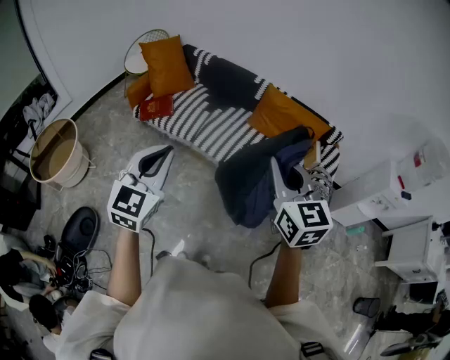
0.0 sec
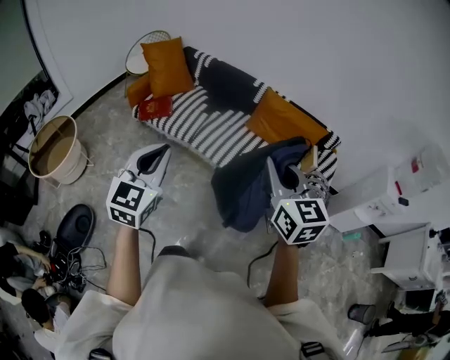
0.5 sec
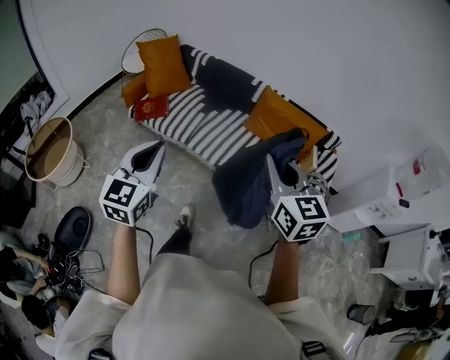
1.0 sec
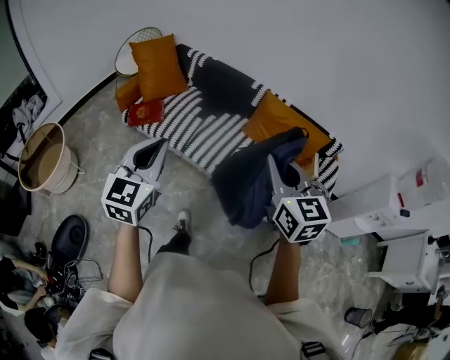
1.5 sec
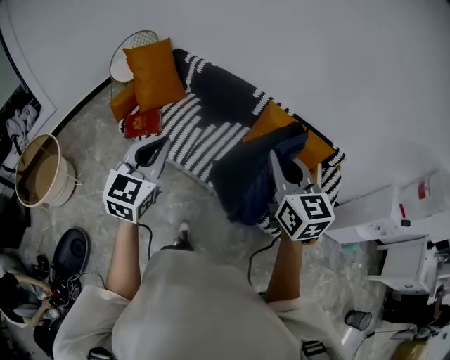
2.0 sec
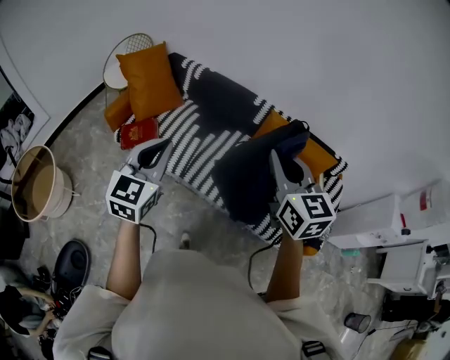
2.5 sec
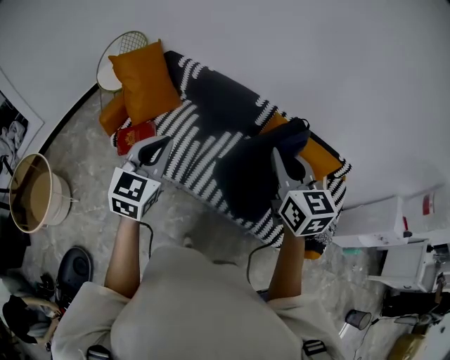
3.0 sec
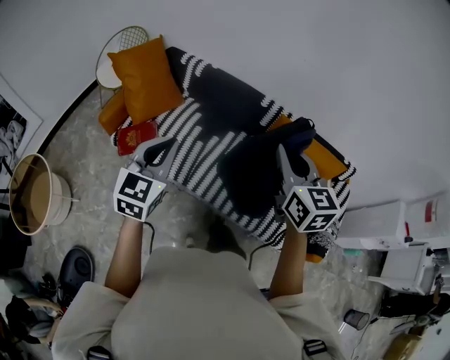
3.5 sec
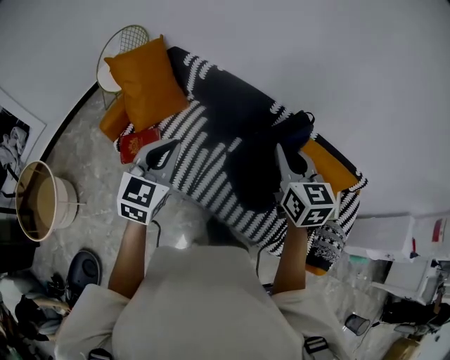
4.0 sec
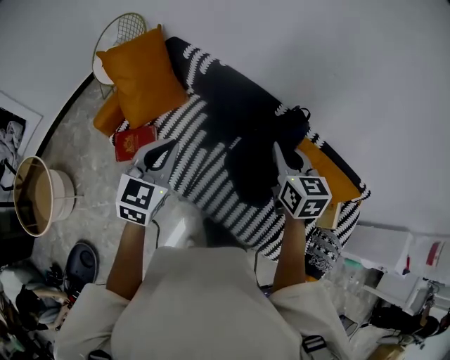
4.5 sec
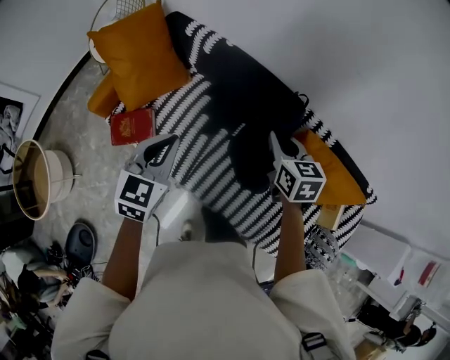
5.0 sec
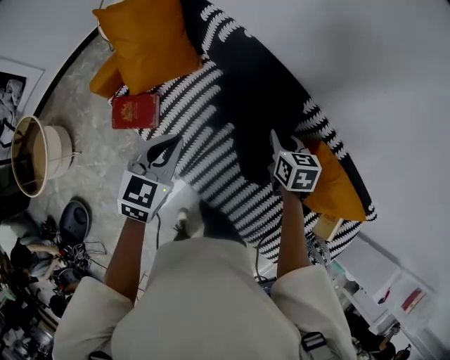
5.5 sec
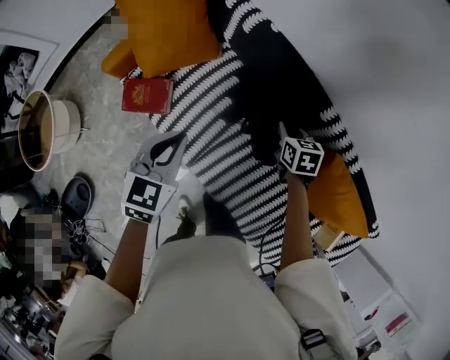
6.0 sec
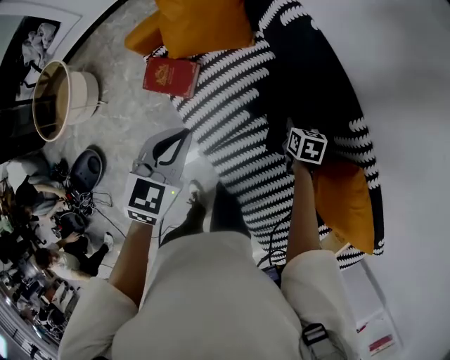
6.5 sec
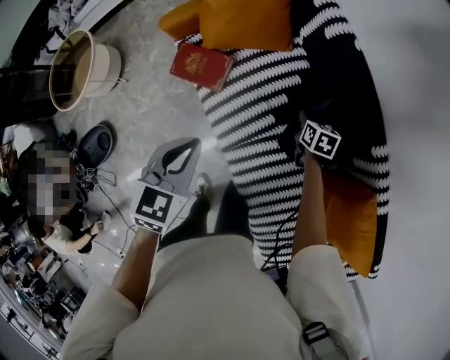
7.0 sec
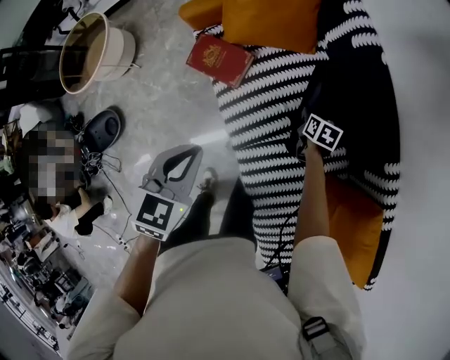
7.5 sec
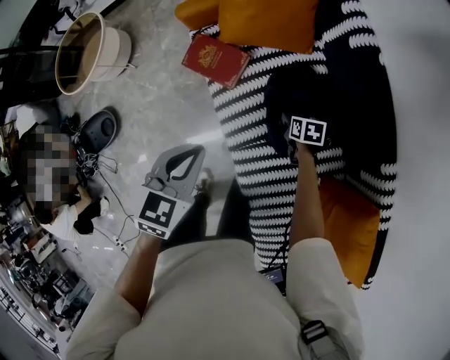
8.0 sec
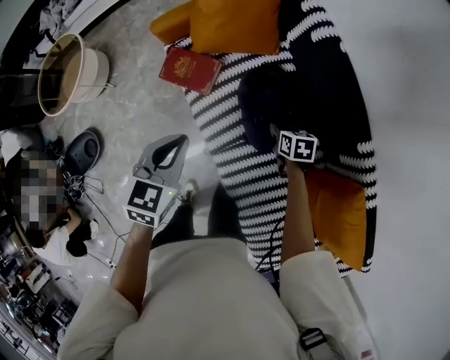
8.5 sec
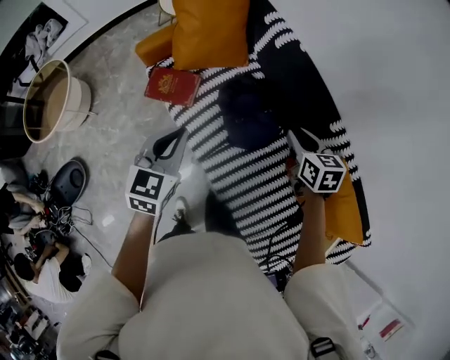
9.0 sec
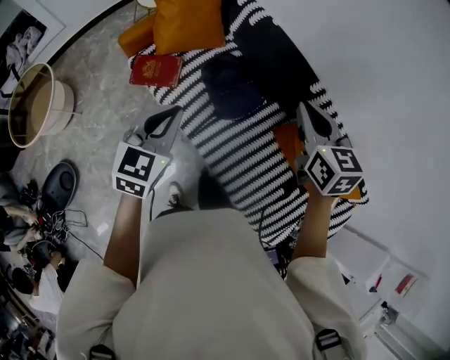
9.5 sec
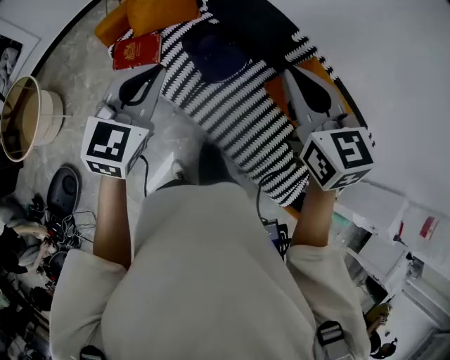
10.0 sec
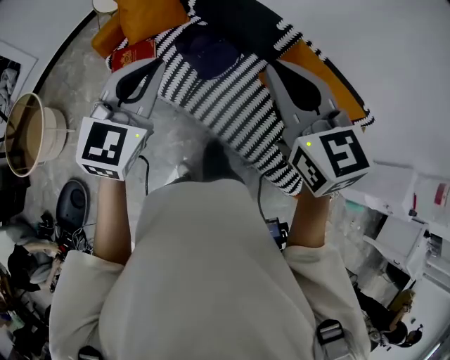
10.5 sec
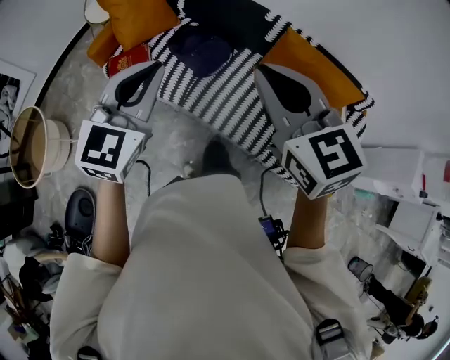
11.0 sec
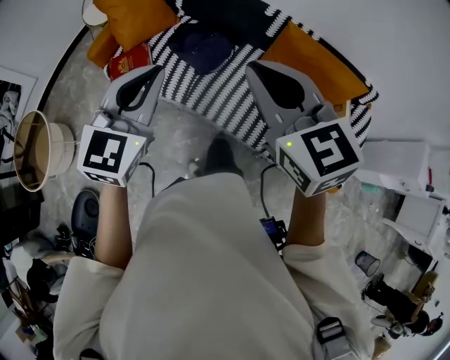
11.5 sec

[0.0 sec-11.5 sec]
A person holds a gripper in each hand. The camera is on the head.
0.0 sec to 2.0 sec: Both grippers travel together forward, some 25 cm.
2.0 sec to 4.0 sec: The grippers both shift forward by approximately 40 cm.
4.0 sec to 6.0 sec: The right gripper is displaced downward and forward by about 50 cm, and points its fingers about 30 degrees further downward; the left gripper moves forward and downward, some 30 cm, and turns by some 30 degrees.
6.0 sec to 7.5 sec: The right gripper travels downward, to the left and forward by approximately 25 cm; the left gripper moves to the left, some 15 cm, and rotates approximately 20 degrees.
7.5 sec to 9.5 sec: The left gripper shifts by roughly 20 cm, and turns by approximately 30 degrees, while the right gripper is displaced upward by roughly 50 cm, turns by some 40 degrees, and opens, then closes again.
9.5 sec to 11.5 sec: The left gripper travels backward, upward and to the right by some 25 cm, and changes its angle by approximately 30 degrees. Meanwhile the right gripper travels backward by roughly 30 cm.

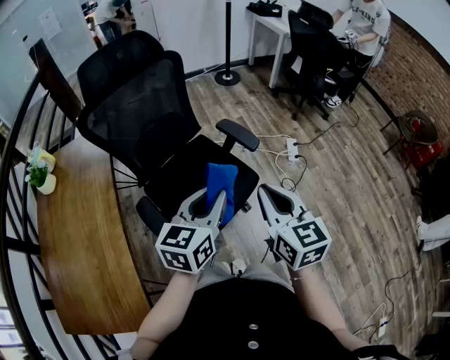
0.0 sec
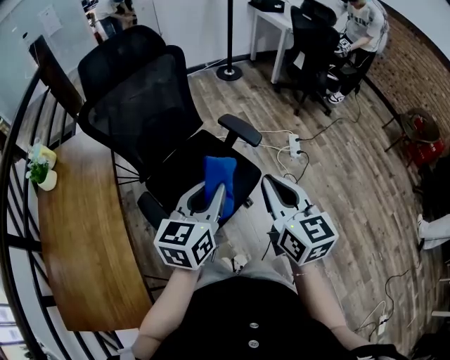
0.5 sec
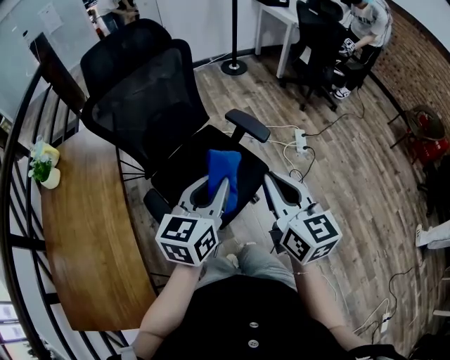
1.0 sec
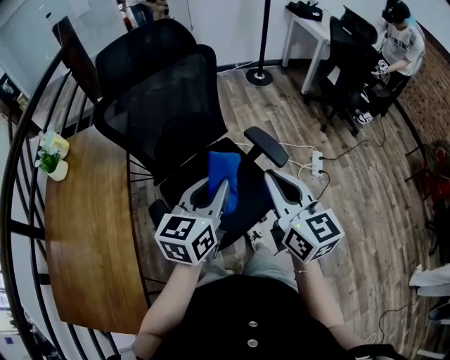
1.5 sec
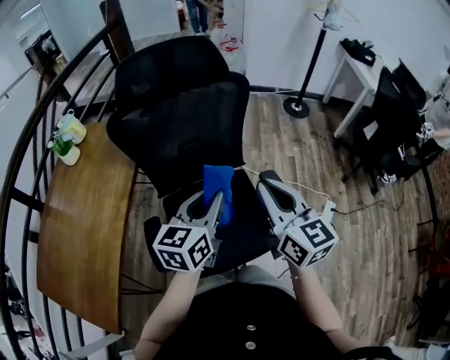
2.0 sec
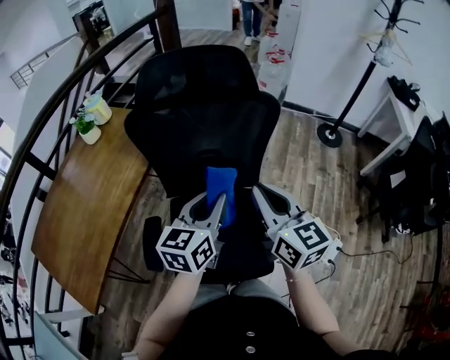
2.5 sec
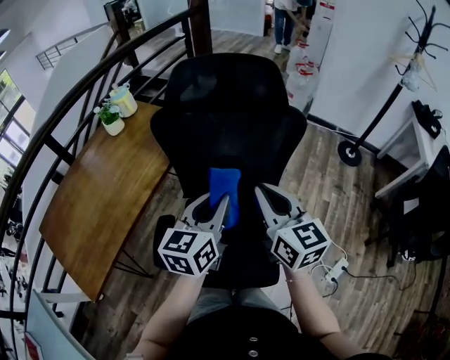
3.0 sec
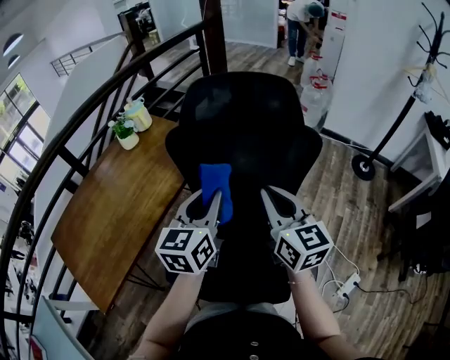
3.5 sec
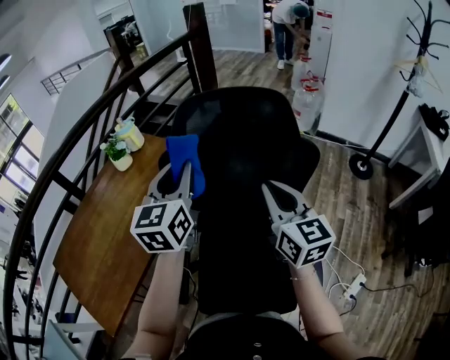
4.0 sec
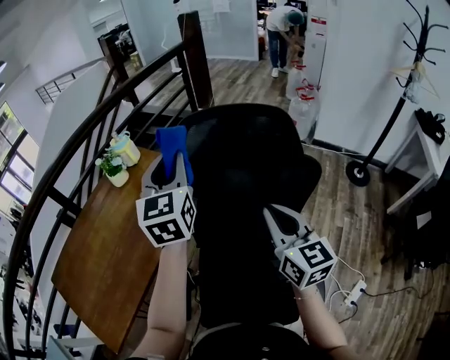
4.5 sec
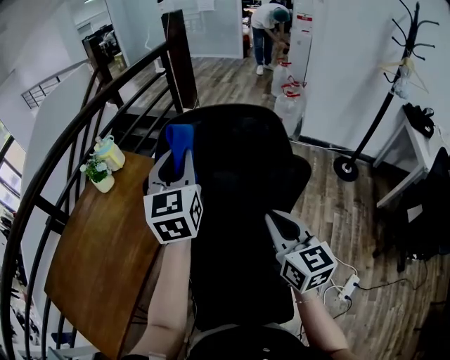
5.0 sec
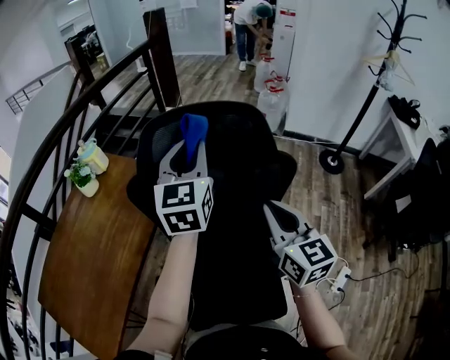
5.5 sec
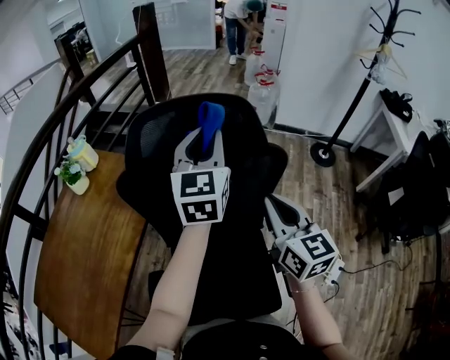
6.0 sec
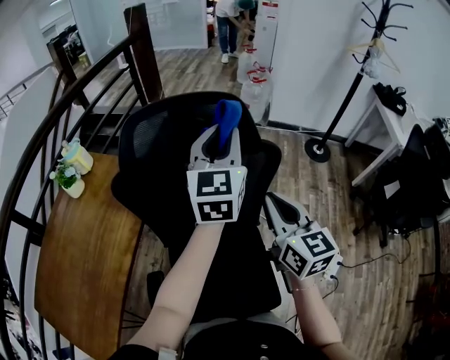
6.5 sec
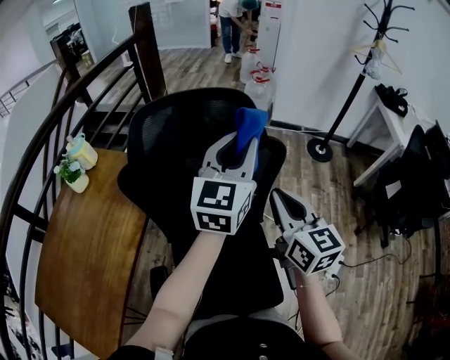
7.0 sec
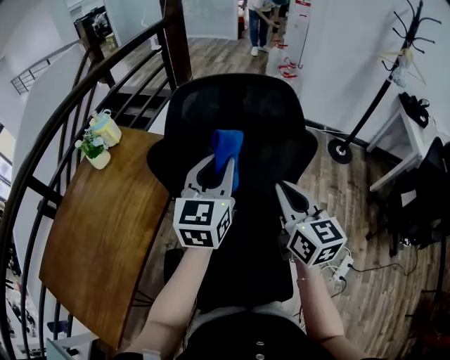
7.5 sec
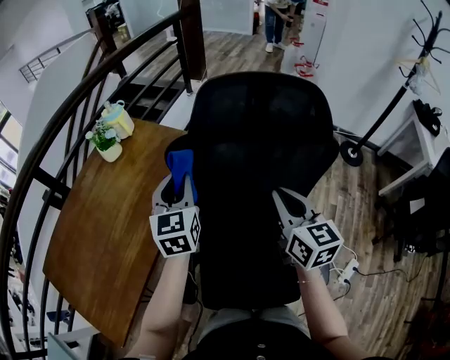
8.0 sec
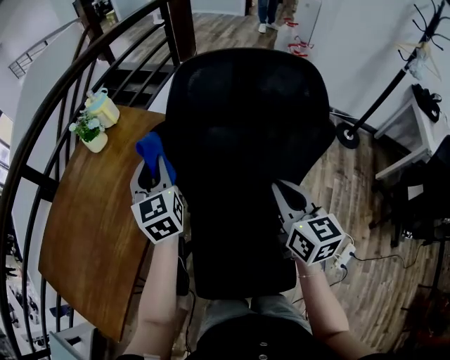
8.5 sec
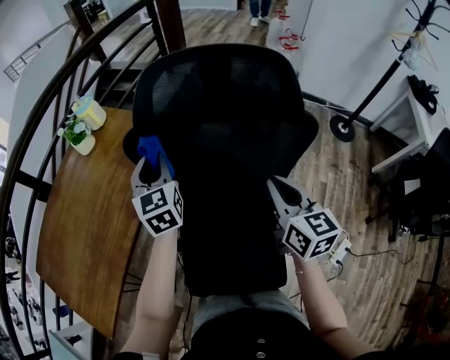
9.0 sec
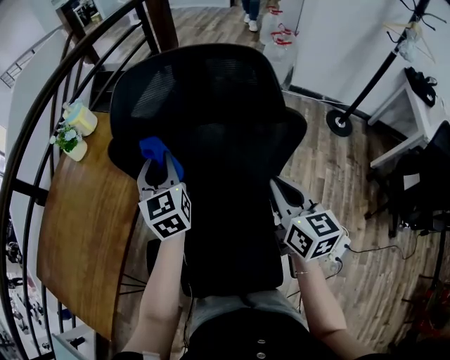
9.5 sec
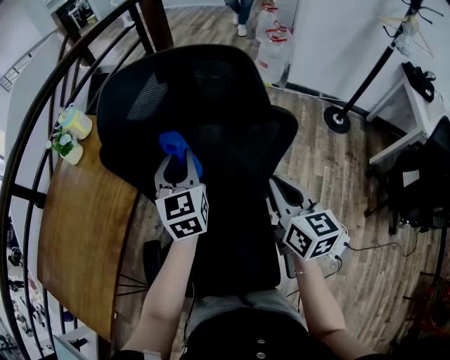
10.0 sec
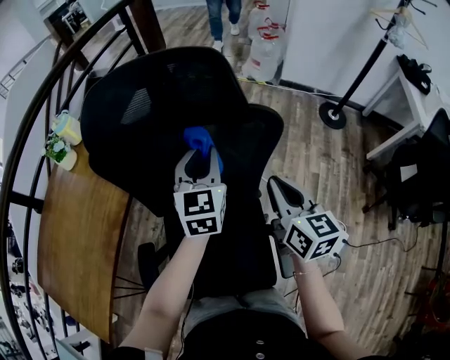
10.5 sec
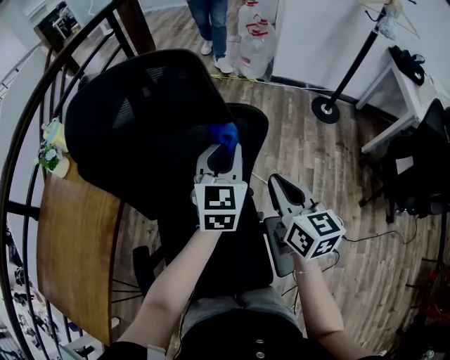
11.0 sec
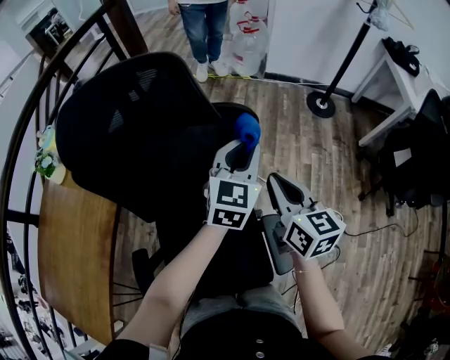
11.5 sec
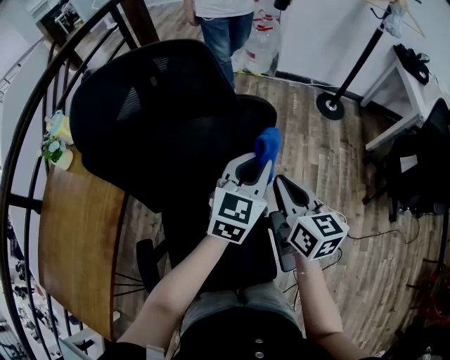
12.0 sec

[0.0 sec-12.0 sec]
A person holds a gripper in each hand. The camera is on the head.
0.0 sec to 2.0 sec: The left gripper moves roughly 25 cm, and turns by about 30 degrees; the right gripper moves approximately 25 cm, and rotates about 30 degrees.
2.0 sec to 4.0 sec: The left gripper ends up approximately 30 cm from where it was, and swivels about 40 degrees. Meanwhile the right gripper ends up approximately 25 cm from where it was.
4.0 sec to 6.0 sec: The left gripper heads to the right and forward, covering about 20 cm. Meanwhile the right gripper moves to the right, approximately 10 cm.
6.0 sec to 8.0 sec: The right gripper heads to the left, covering roughly 10 cm. Meanwhile the left gripper goes about 25 cm to the left and downward, and changes its angle by approximately 20 degrees.
8.0 sec to 10.0 sec: The two grippers go about 15 cm to the right.
10.0 sec to 12.0 sec: The right gripper shifts about 5 cm to the right; the left gripper travels to the right by roughly 25 cm, and rotates some 40 degrees.

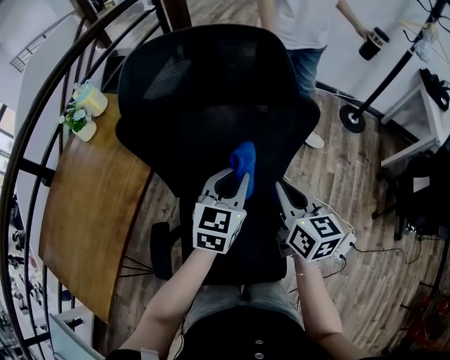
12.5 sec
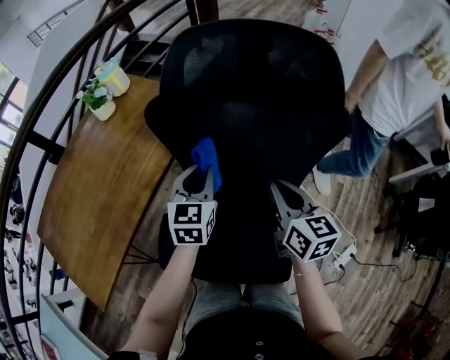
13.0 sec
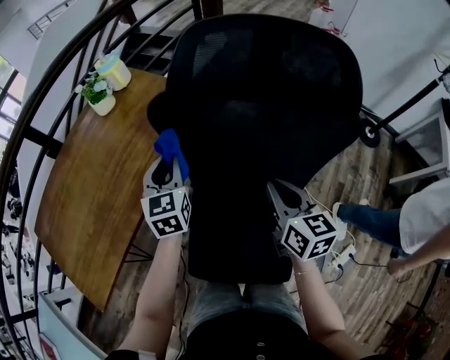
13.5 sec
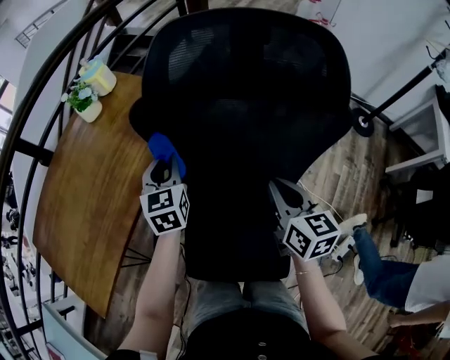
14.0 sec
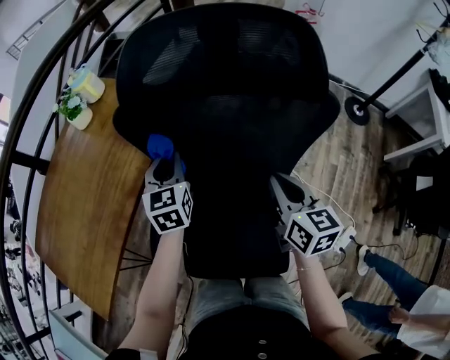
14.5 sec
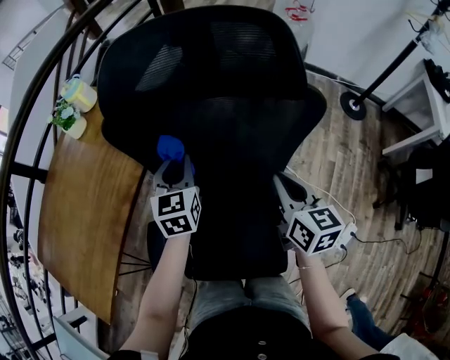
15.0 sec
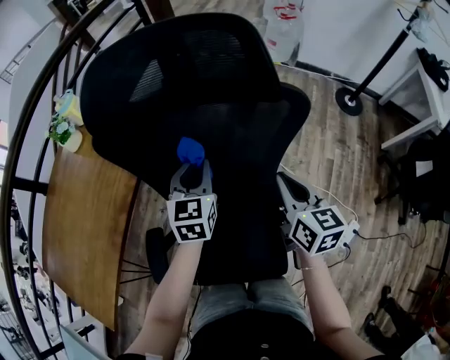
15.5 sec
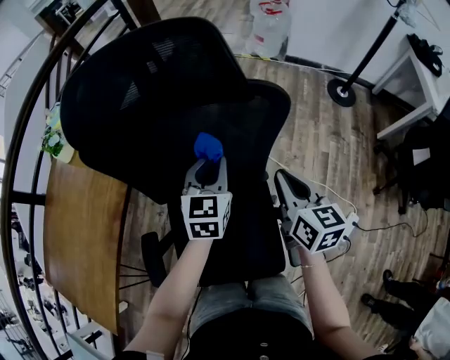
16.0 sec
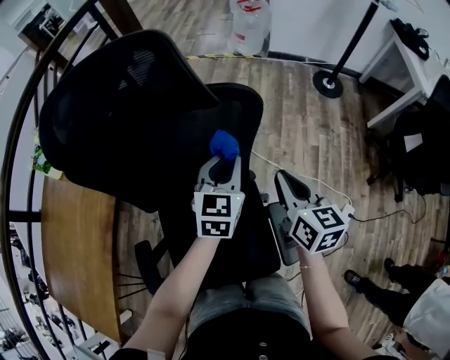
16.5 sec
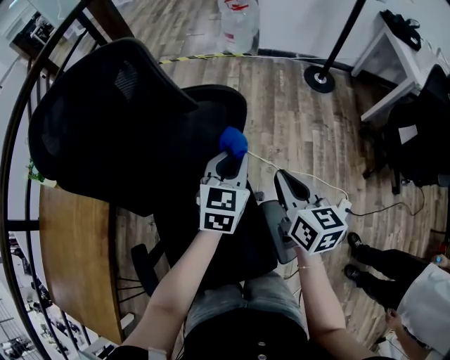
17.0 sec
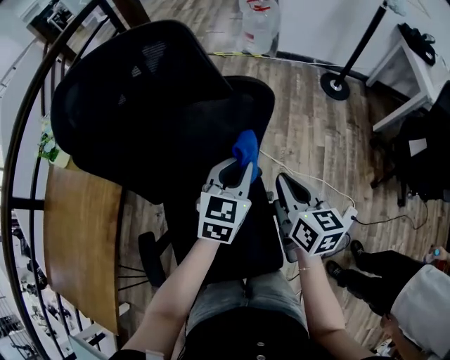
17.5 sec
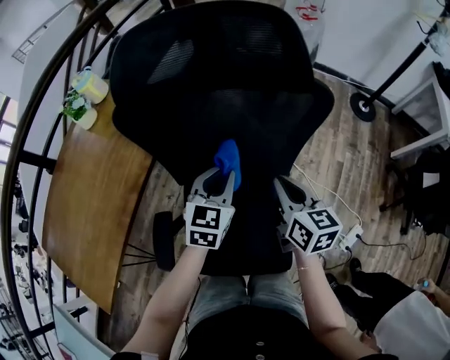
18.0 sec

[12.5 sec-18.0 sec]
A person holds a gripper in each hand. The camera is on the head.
12.5 sec to 14.5 sec: The right gripper reaches roughly 10 cm to the left, then returns; the left gripper moves to the left and forward, about 20 cm, and changes its angle by roughly 30 degrees.
14.5 sec to 16.0 sec: The left gripper moves to the right, roughly 20 cm, and swivels approximately 20 degrees. Meanwhile the right gripper is displaced to the right by roughly 10 cm.
16.0 sec to 18.0 sec: The left gripper shifts about 5 cm backward, and moves about 15 cm to the right and comes back, while the right gripper travels to the left by about 5 cm.
